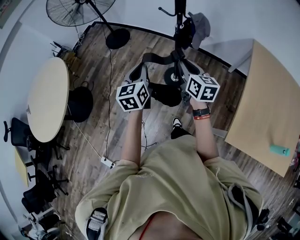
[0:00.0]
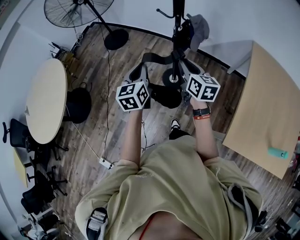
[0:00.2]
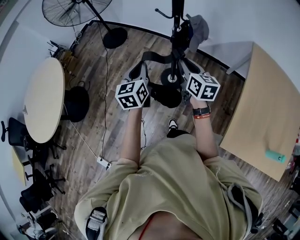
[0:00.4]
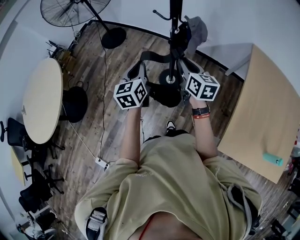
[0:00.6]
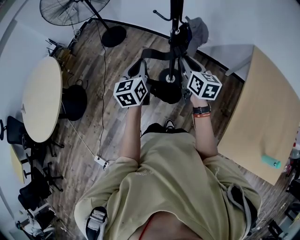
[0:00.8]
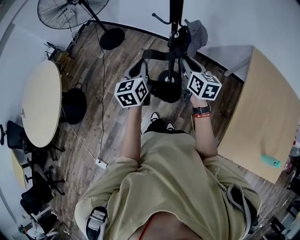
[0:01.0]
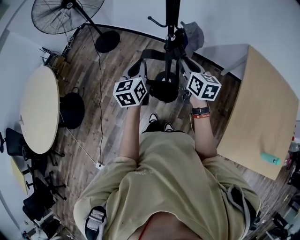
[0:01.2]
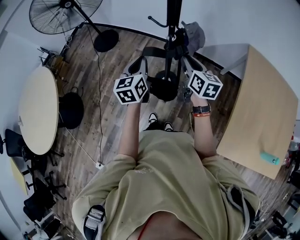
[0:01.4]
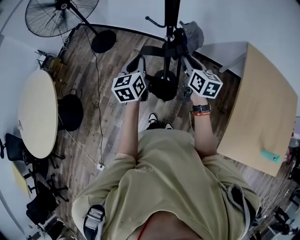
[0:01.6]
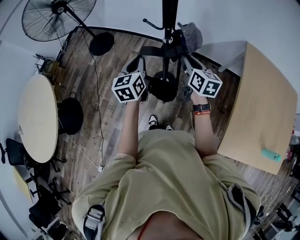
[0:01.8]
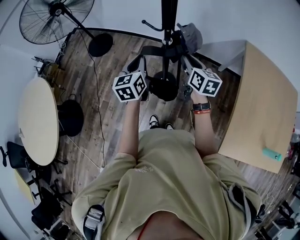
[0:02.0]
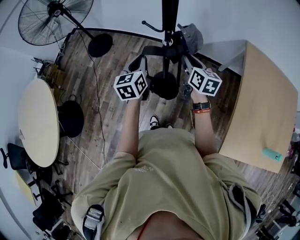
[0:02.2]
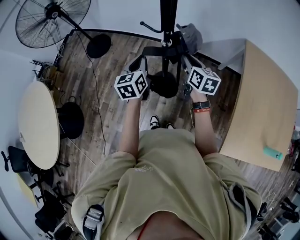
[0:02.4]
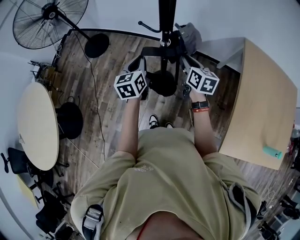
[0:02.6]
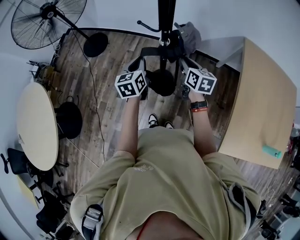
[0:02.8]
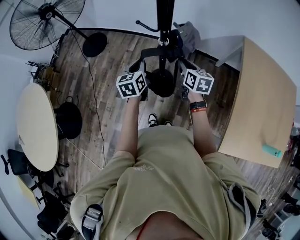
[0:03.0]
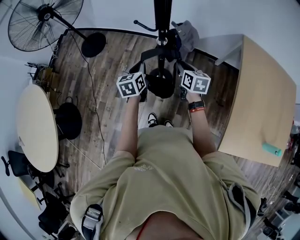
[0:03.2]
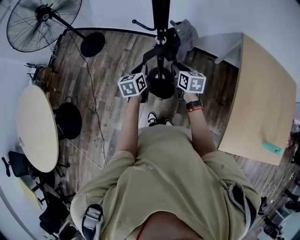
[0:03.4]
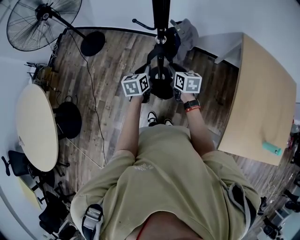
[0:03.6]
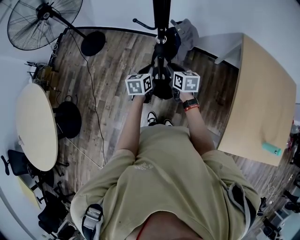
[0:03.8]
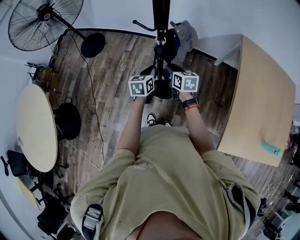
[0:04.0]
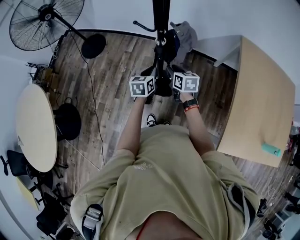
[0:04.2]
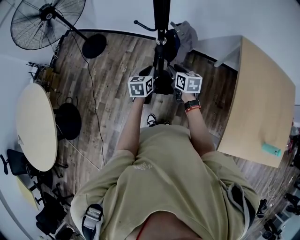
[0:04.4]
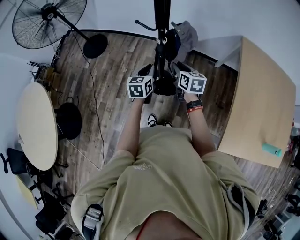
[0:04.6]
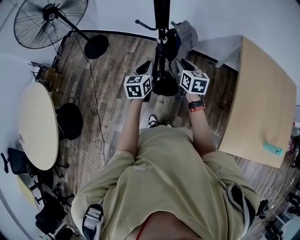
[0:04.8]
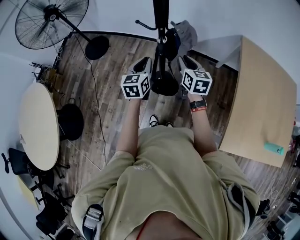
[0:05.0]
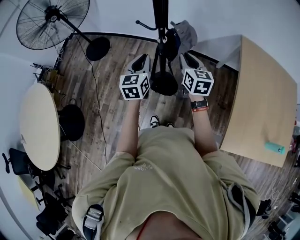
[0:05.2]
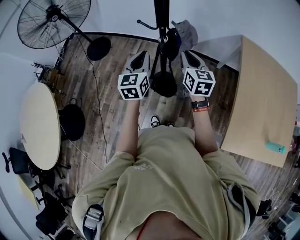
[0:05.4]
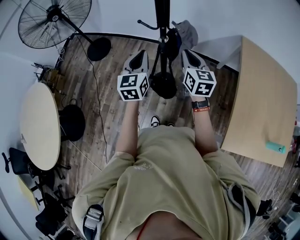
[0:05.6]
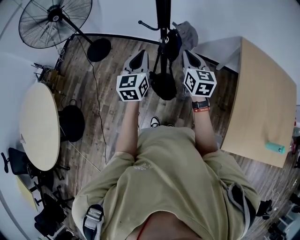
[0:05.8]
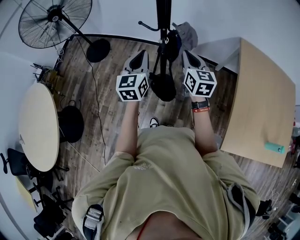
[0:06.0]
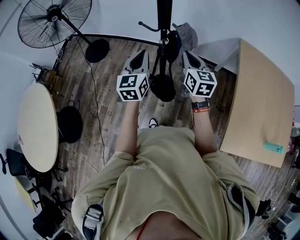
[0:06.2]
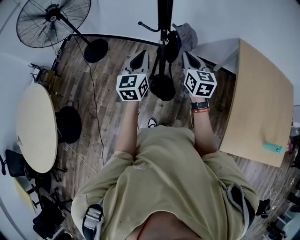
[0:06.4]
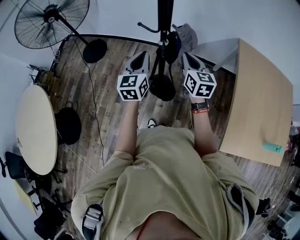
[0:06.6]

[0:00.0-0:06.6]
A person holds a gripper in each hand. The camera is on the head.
0:00.0 to 0:01.6: The left gripper travels forward by approximately 15 cm, while the right gripper goes about 15 cm forward and to the right.
0:01.6 to 0:03.2: The grippers both shift downward and forward by approximately 15 cm.
0:03.2 to 0:05.0: Both grippers move upward, some 5 cm.
0:05.0 to 0:06.6: Both grippers travel together upward, about 5 cm. The right gripper closes its fingers.

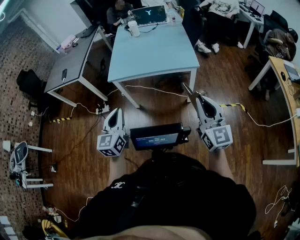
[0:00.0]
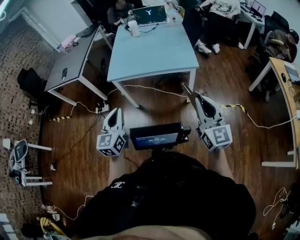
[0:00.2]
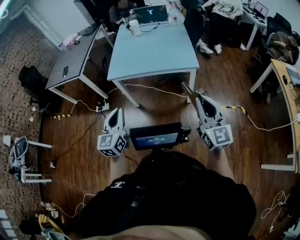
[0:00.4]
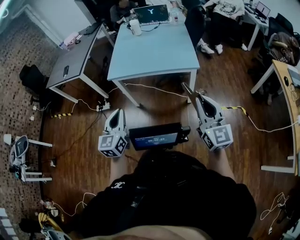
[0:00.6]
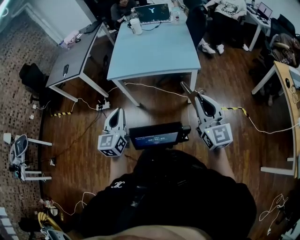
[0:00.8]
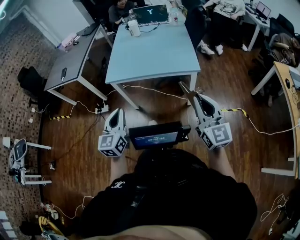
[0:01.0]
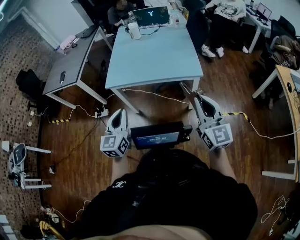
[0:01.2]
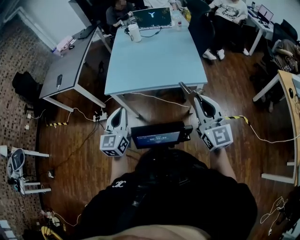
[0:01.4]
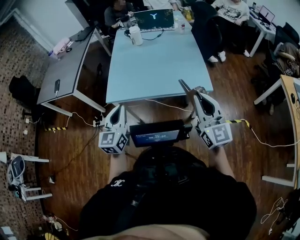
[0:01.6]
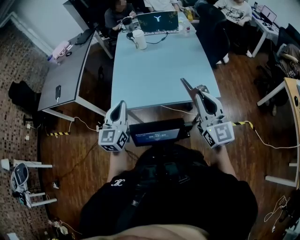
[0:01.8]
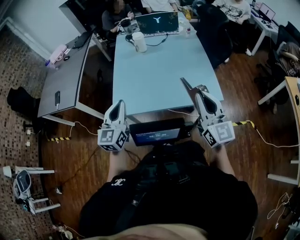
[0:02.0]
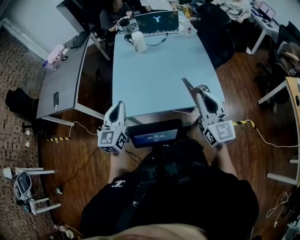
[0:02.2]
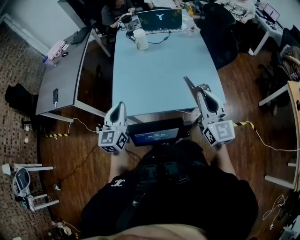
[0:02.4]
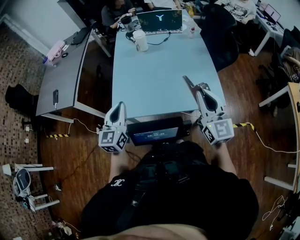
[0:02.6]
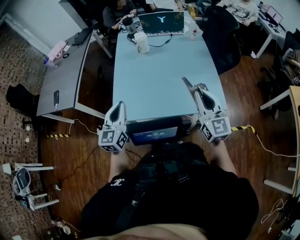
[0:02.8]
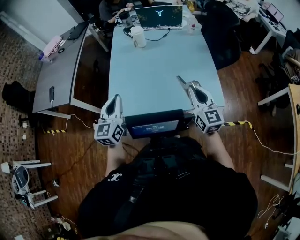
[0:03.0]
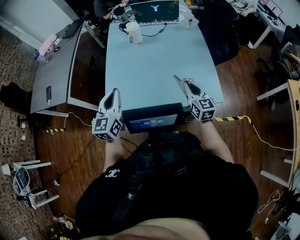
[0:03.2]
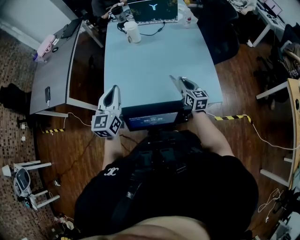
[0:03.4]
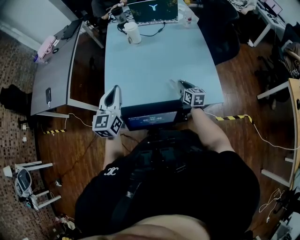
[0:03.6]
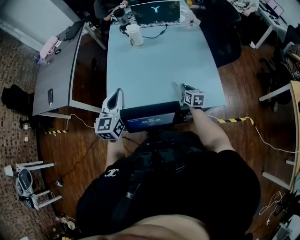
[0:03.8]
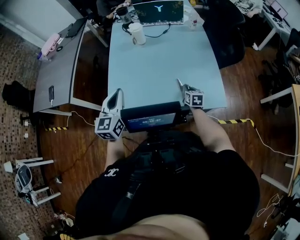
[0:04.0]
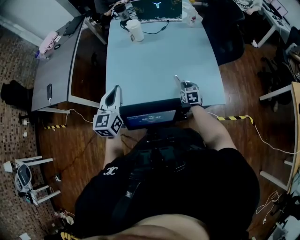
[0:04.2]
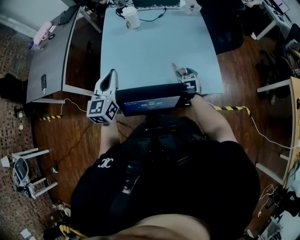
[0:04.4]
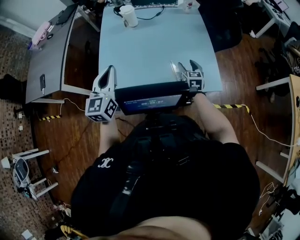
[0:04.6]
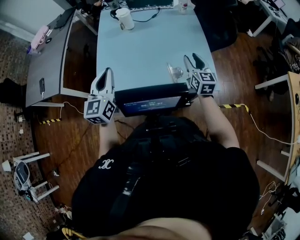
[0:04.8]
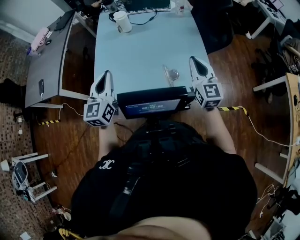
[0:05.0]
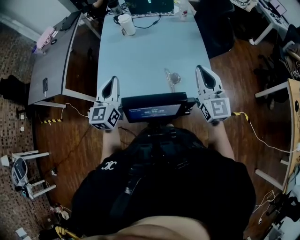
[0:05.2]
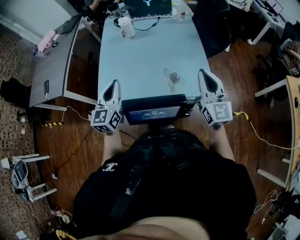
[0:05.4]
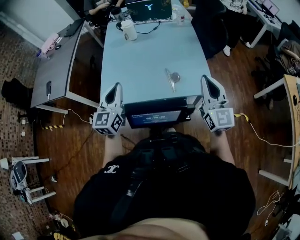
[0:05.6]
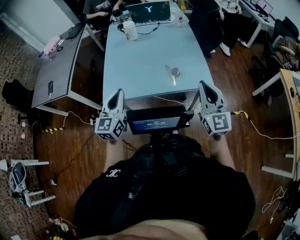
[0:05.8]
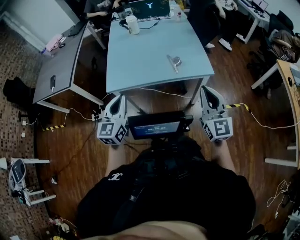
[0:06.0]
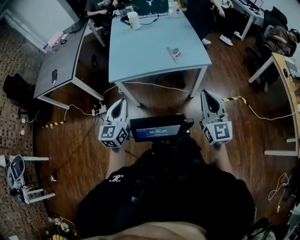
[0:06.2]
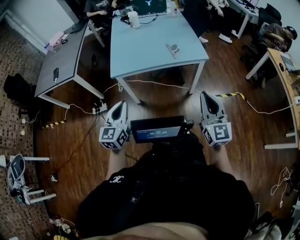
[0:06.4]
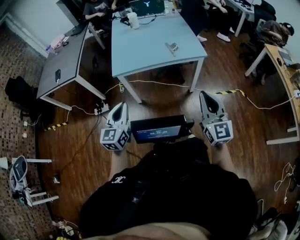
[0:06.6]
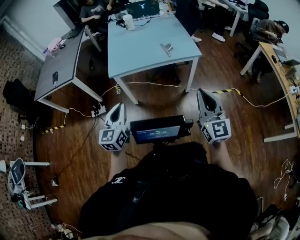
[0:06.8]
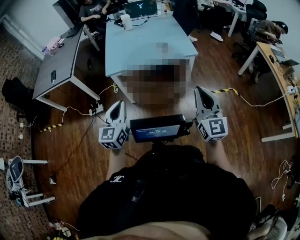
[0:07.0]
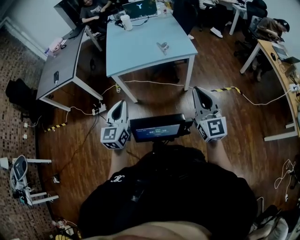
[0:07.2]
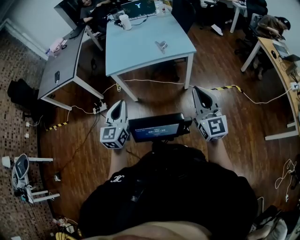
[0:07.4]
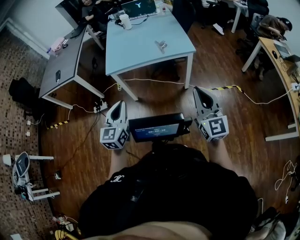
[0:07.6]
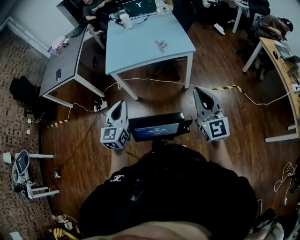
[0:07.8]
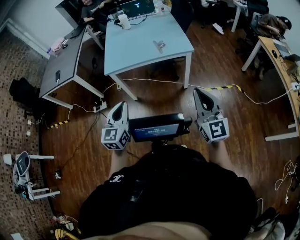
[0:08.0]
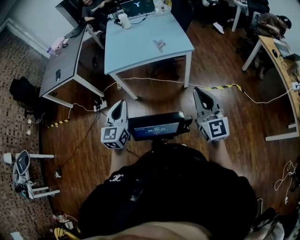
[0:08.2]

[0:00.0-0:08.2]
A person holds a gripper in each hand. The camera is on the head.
0:00.0 to 0:01.6: Both grippers travel together forward, approximately 25 cm.
0:01.6 to 0:03.2: The right gripper moves forward and downward, approximately 30 cm, and changes its angle by some 20 degrees; the left gripper is displaced forward by about 25 cm.
0:03.2 to 0:05.0: The grippers both shift to the right by roughly 5 cm. The right gripper reaches roughly 20 cm downward, then returns, and opens, then closes again.
0:05.0 to 0:06.6: The two grippers travel together, backward, approximately 50 cm.
0:06.6 to 0:08.2: The grippers both shift to the right and backward by roughly 10 cm.

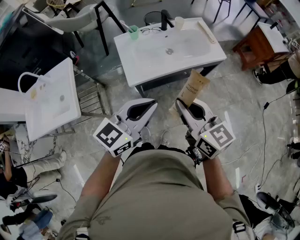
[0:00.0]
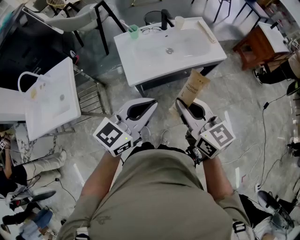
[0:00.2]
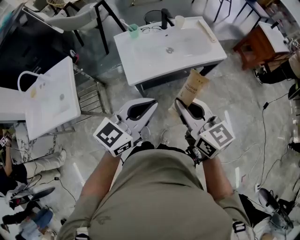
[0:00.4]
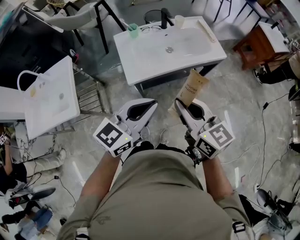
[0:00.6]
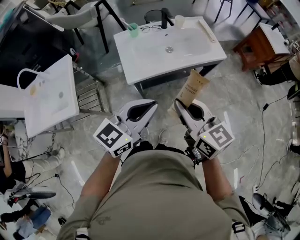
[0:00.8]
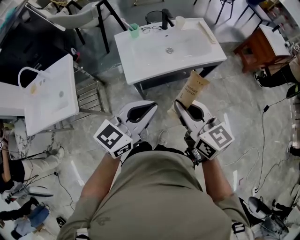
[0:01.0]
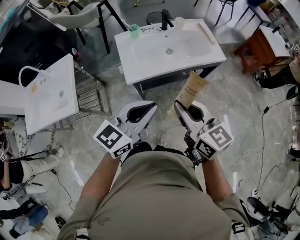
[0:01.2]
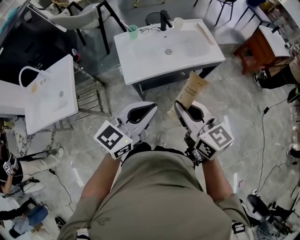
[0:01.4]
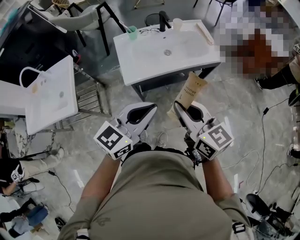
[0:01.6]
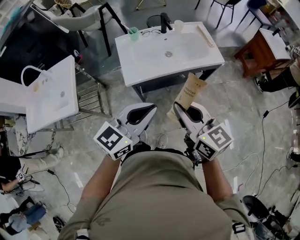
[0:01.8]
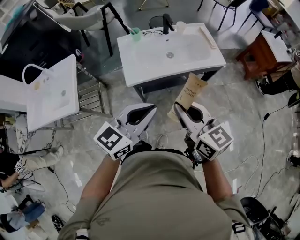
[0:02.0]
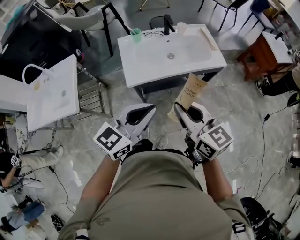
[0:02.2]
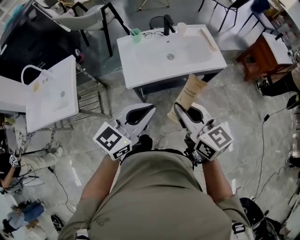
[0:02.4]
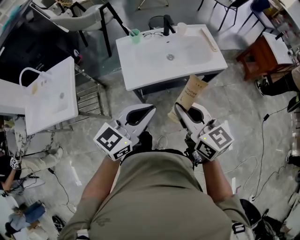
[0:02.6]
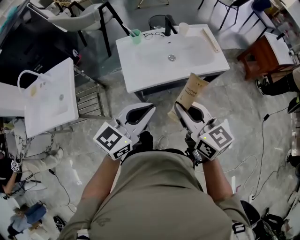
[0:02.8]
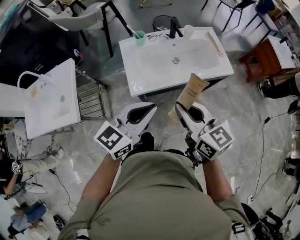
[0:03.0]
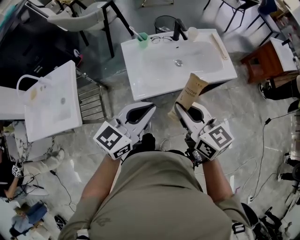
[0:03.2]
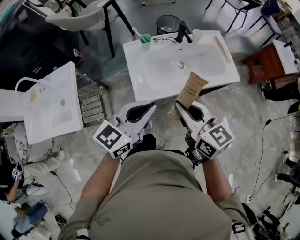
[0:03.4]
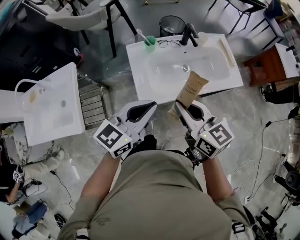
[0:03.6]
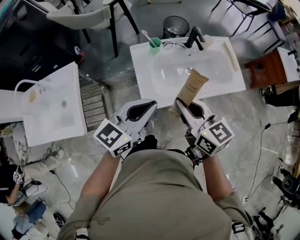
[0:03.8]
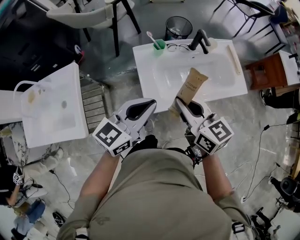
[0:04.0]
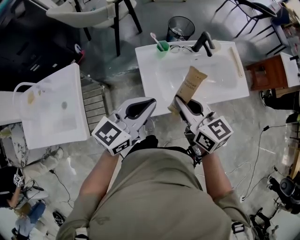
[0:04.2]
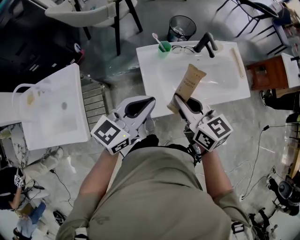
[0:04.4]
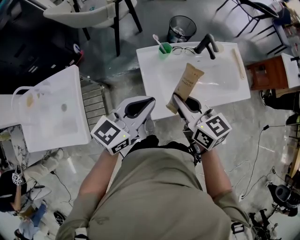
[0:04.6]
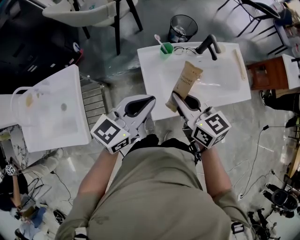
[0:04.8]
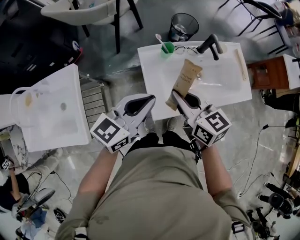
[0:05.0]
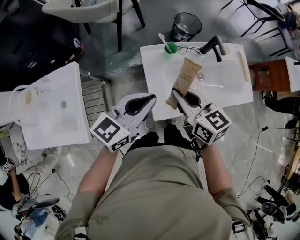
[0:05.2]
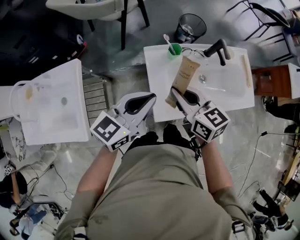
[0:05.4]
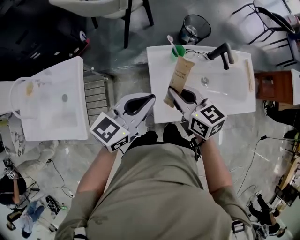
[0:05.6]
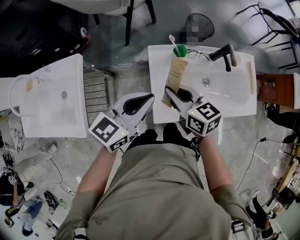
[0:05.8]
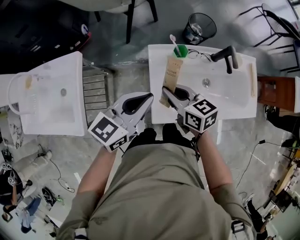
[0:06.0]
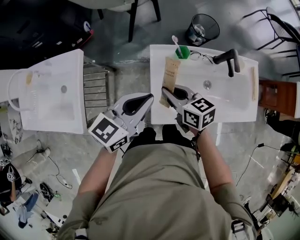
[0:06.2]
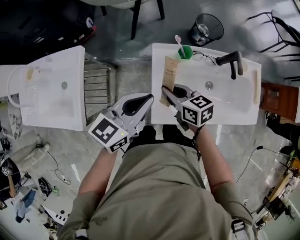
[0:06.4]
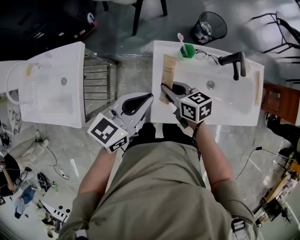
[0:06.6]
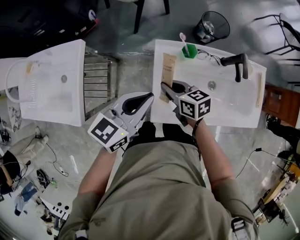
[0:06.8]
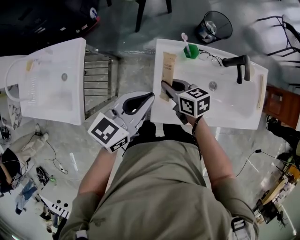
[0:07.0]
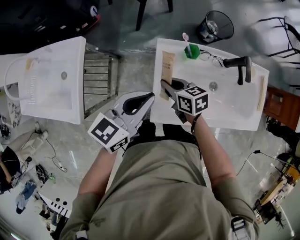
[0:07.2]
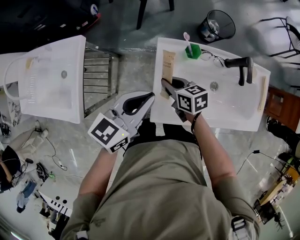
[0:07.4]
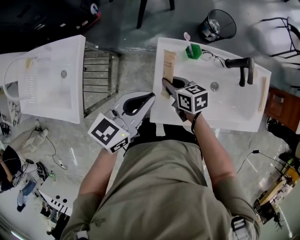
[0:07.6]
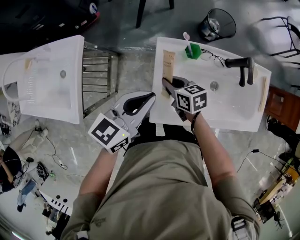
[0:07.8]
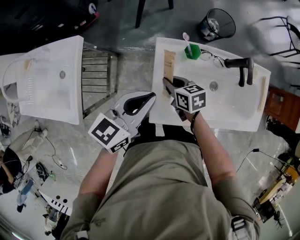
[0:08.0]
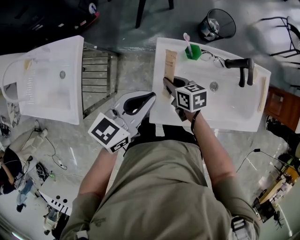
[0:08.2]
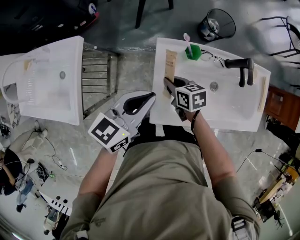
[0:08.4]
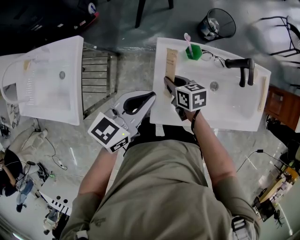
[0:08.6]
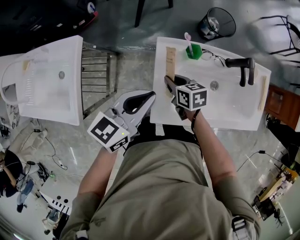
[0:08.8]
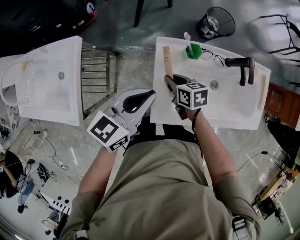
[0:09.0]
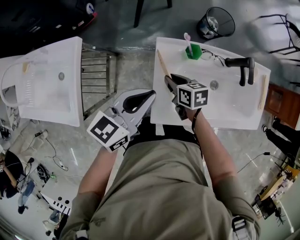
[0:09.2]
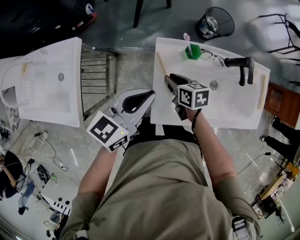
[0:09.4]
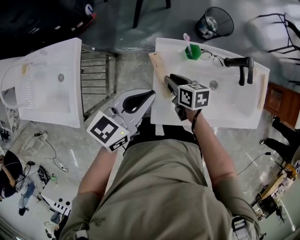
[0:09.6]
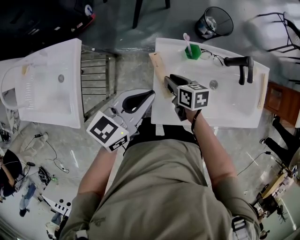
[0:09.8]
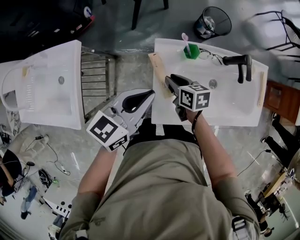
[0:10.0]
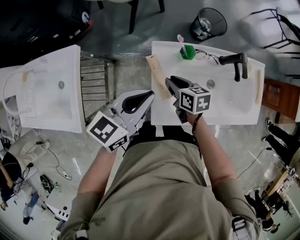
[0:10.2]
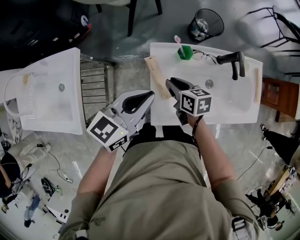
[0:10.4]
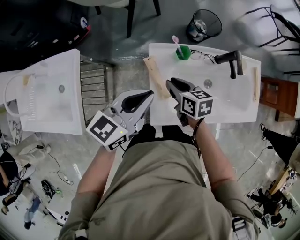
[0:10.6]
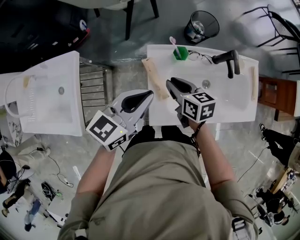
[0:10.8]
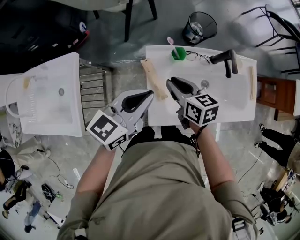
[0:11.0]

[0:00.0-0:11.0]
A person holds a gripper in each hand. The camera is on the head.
0:00.0 to 0:01.6: The grippers stay close to where they were, moving slightly.
0:01.6 to 0:03.2: The two grippers go some 15 cm forward and to the left.
0:03.2 to 0:04.8: The two grippers go approximately 20 cm forward and to the left.
0:04.8 to 0:06.2: The left gripper shifts by some 5 cm, while the right gripper goes roughly 15 cm downward and forward, and rotates approximately 20 degrees.
0:06.2 to 0:07.8: The right gripper goes roughly 10 cm downward.
0:07.8 to 0:09.4: The grippers make only small movements.
0:09.4 to 0:11.0: The right gripper heads upward, covering about 15 cm.
